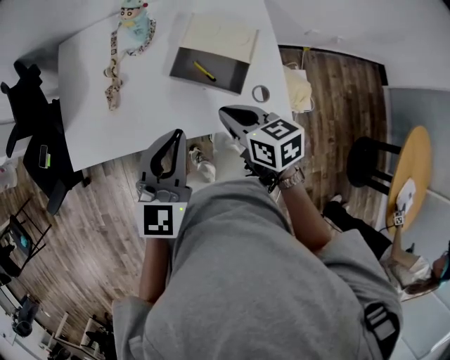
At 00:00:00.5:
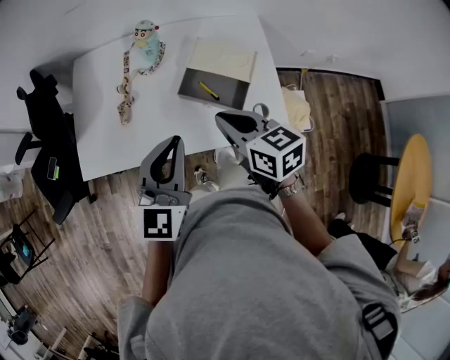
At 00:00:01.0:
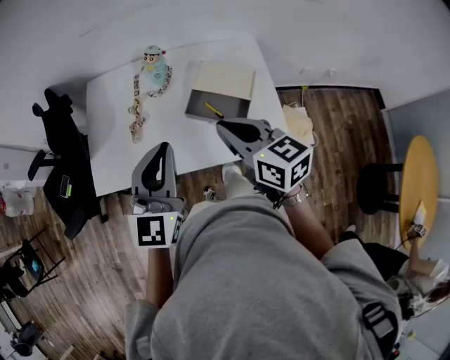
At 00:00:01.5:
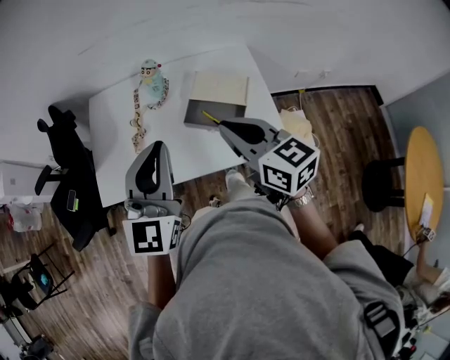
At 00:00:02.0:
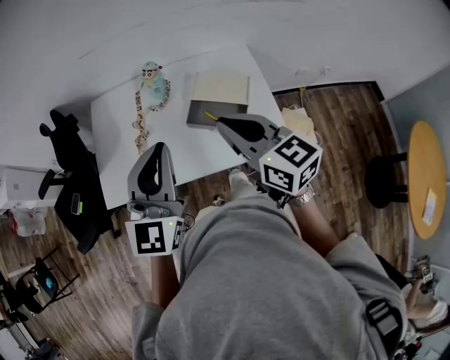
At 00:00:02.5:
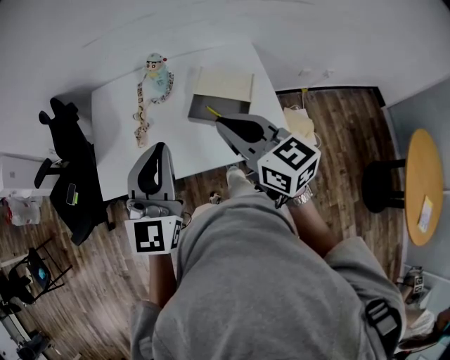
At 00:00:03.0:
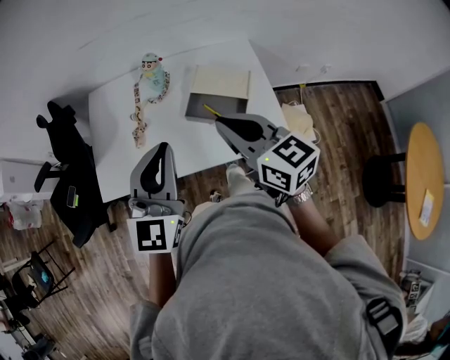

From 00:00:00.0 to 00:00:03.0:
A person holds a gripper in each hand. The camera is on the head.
From 00:00:00.0 to 00:00:01.5: The grippers both shift upward by roughly 15 cm. The right gripper turns by roughly 30 degrees.
From 00:00:01.5 to 00:00:03.0: There are only small adjustments of the grippers.

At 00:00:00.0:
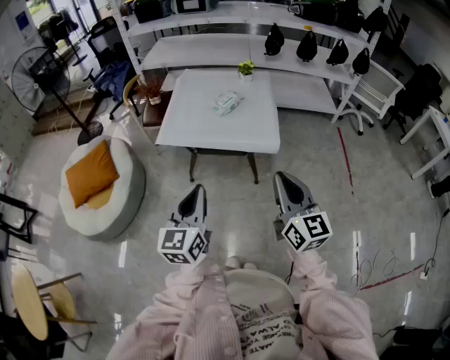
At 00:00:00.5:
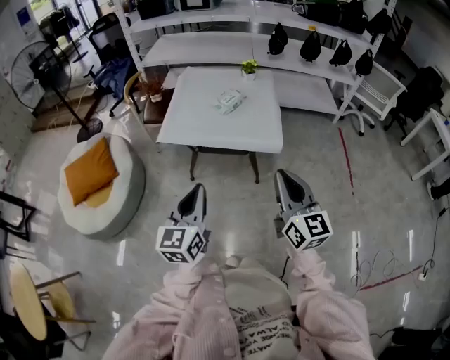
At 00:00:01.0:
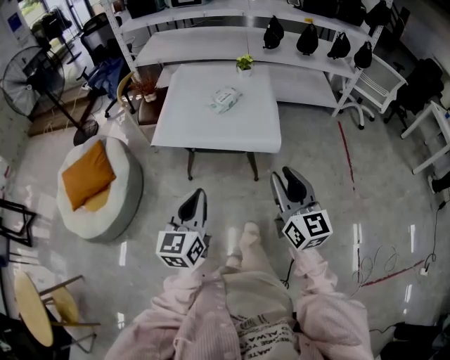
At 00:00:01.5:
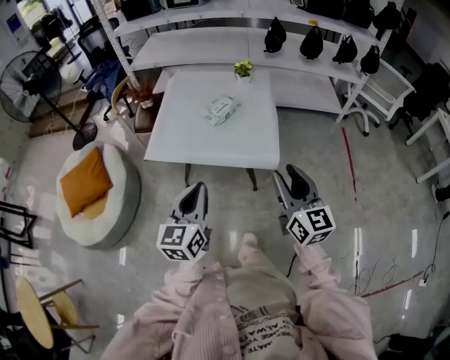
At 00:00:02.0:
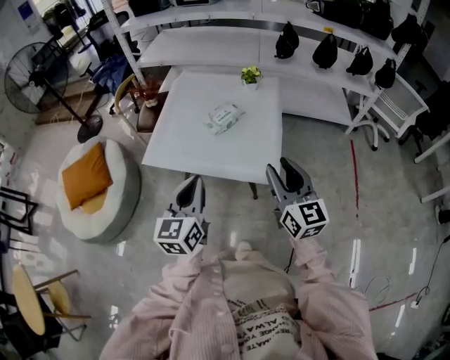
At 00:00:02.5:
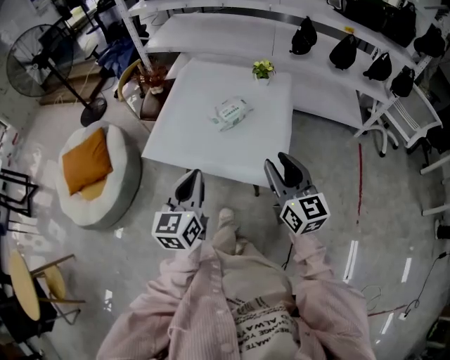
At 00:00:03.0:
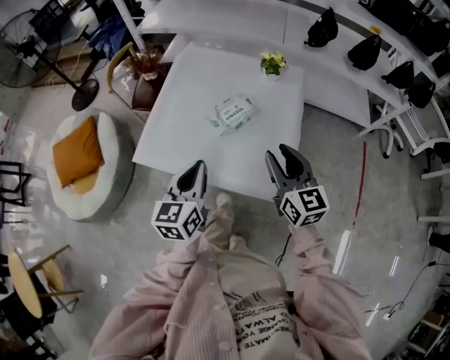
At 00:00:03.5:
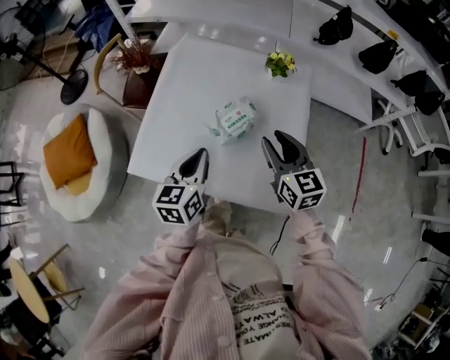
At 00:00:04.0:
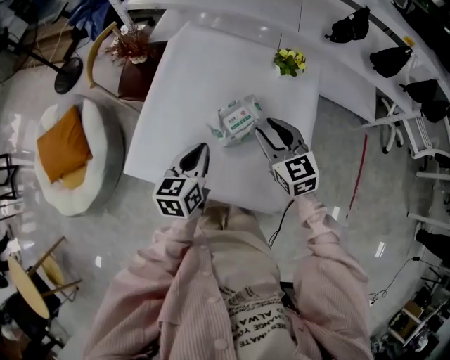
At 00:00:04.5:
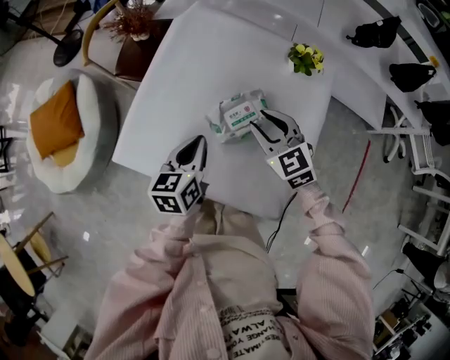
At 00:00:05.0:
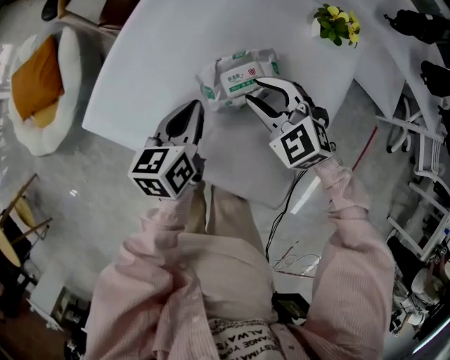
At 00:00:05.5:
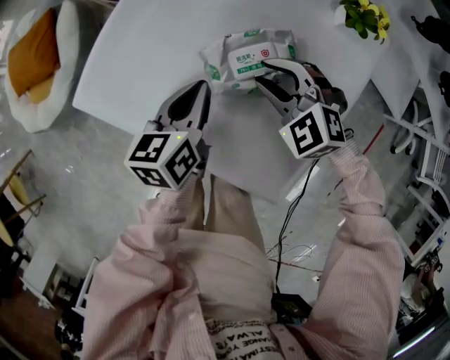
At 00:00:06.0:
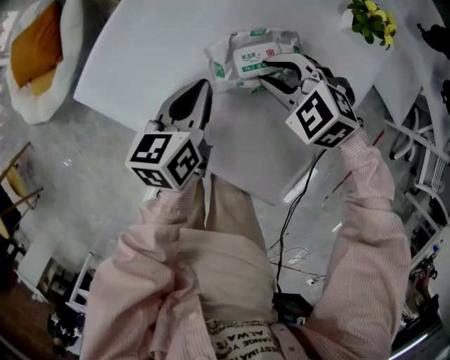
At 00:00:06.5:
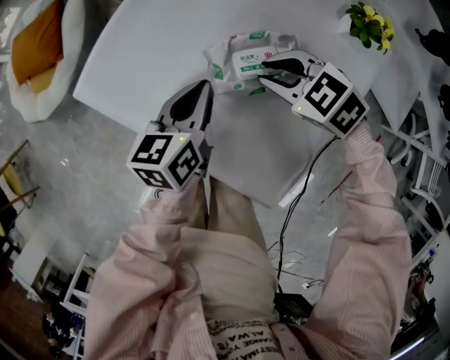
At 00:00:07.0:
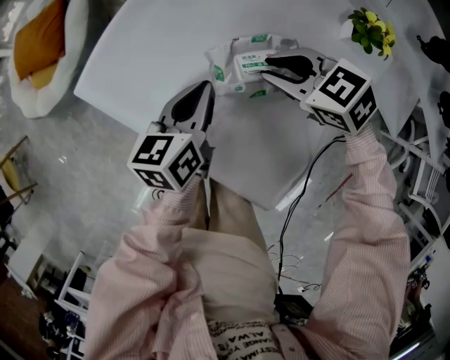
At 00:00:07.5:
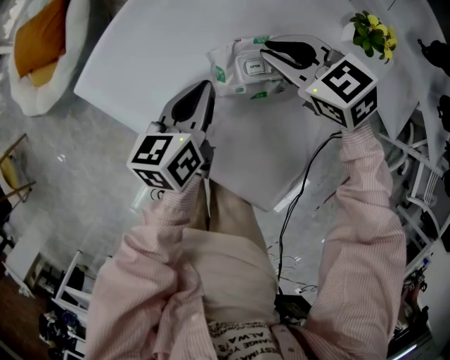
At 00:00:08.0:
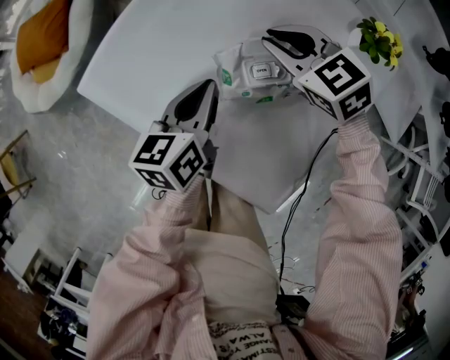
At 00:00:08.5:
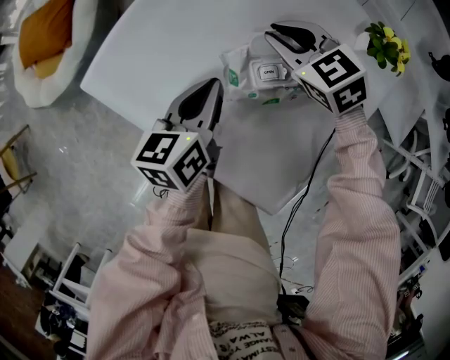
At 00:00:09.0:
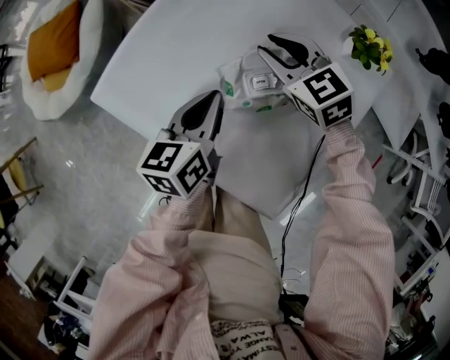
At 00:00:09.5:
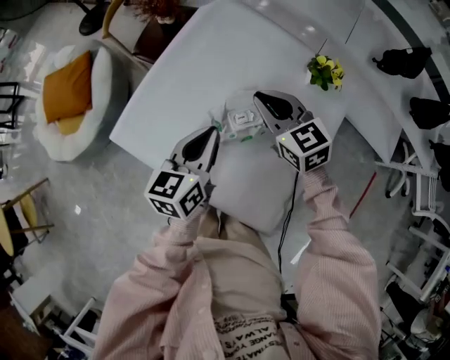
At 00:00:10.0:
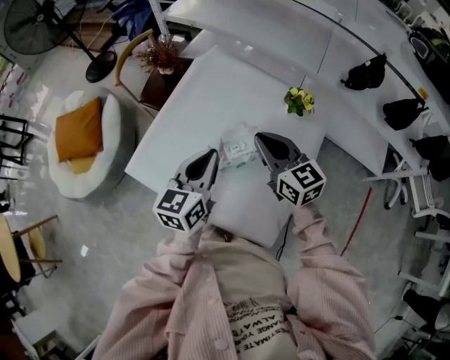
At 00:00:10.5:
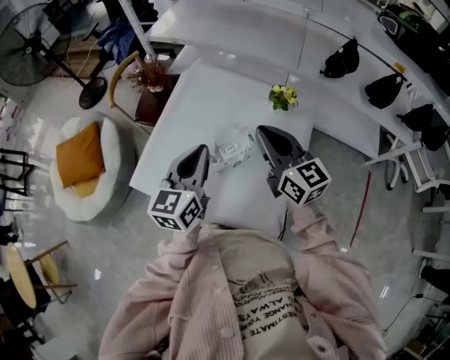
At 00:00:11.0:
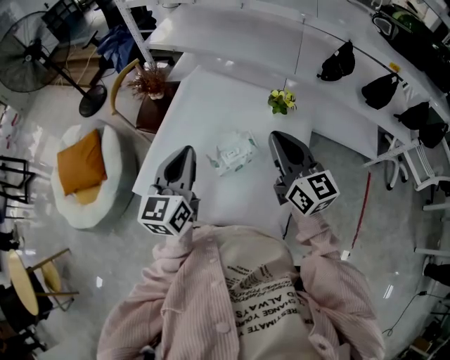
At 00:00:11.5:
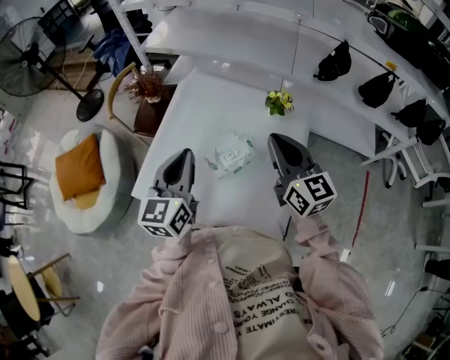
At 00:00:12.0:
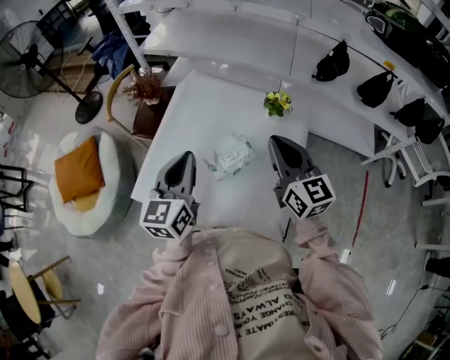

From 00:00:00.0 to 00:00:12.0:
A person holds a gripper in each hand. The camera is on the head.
From 00:00:00.0 to 00:00:02.0: The grippers both shift forward by approximately 25 cm. The right gripper opens up.
From 00:00:02.0 to 00:00:04.0: Both grippers travel together forward and downward, some 40 cm. The right gripper rotates some 30 degrees, while the left gripper turns by roughly 20 degrees.
From 00:00:04.0 to 00:00:06.0: Both grippers travel together downward, approximately 15 cm. The left gripper rotates some 20 degrees. Meanwhile the right gripper swivels roughly 60 degrees.
From 00:00:06.0 to 00:00:08.0: The right gripper goes roughly 10 cm forward, and changes its angle by about 20 degrees.
From 00:00:08.0 to 00:00:10.0: The left gripper travels upward by about 20 cm, and swivels roughly 30 degrees. Meanwhile the right gripper moves upward and backward, roughly 20 cm, and rotates about 40 degrees.
From 00:00:10.0 to 00:00:12.0: The right gripper moves upward and to the right, roughly 10 cm, and changes its angle by about 20 degrees, while the left gripper moves upward, approximately 5 cm.

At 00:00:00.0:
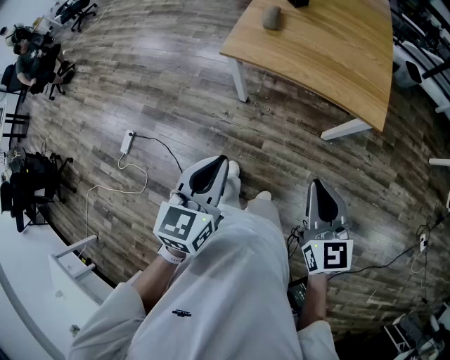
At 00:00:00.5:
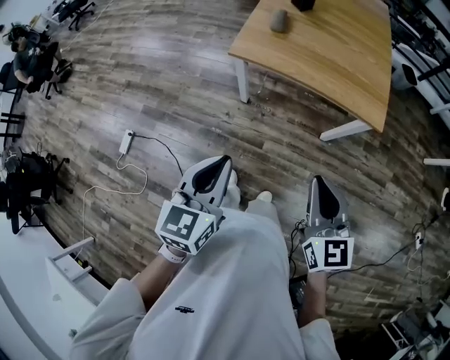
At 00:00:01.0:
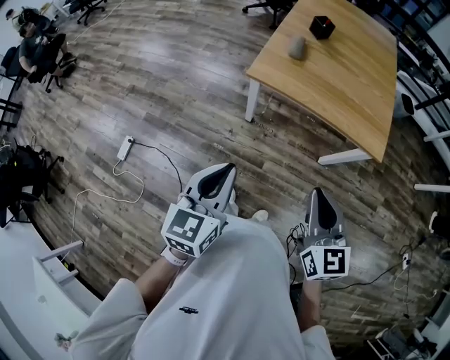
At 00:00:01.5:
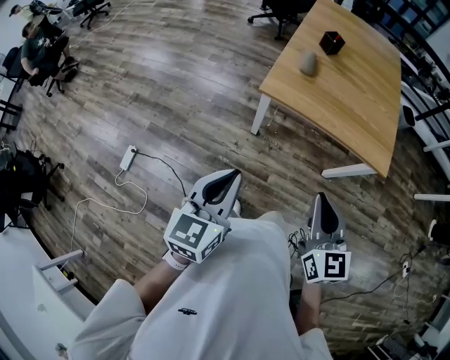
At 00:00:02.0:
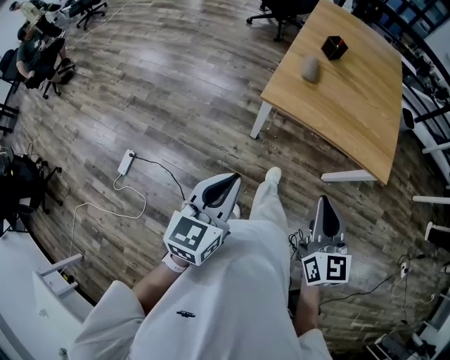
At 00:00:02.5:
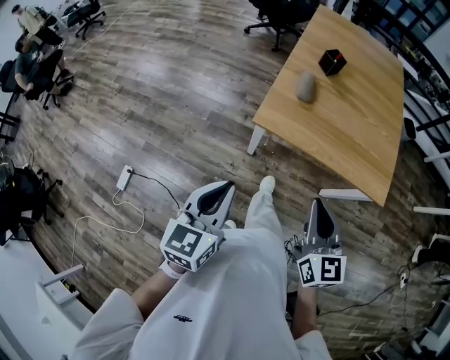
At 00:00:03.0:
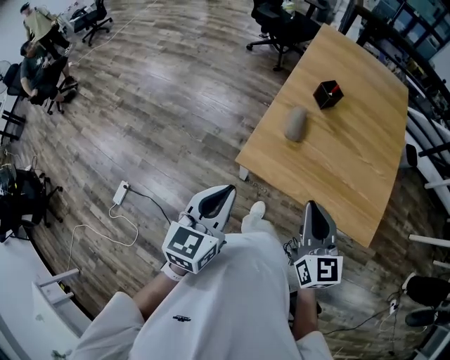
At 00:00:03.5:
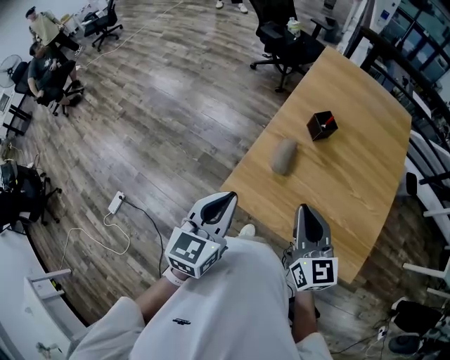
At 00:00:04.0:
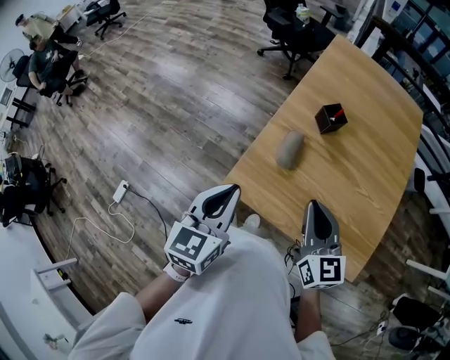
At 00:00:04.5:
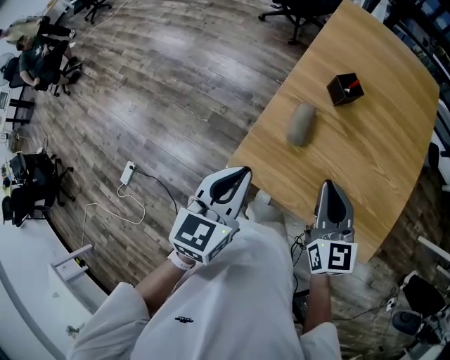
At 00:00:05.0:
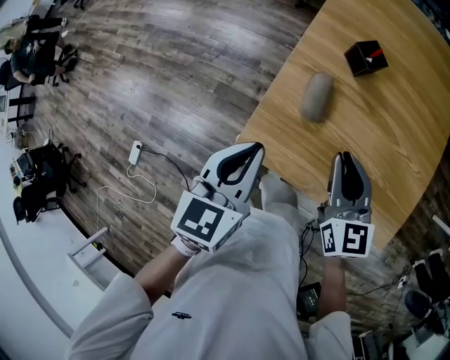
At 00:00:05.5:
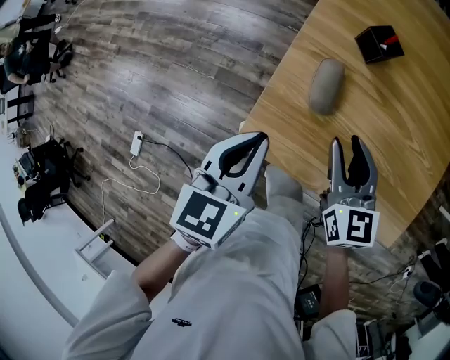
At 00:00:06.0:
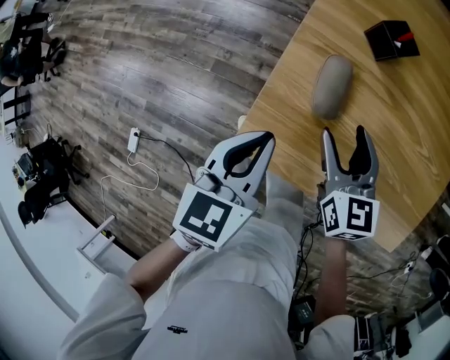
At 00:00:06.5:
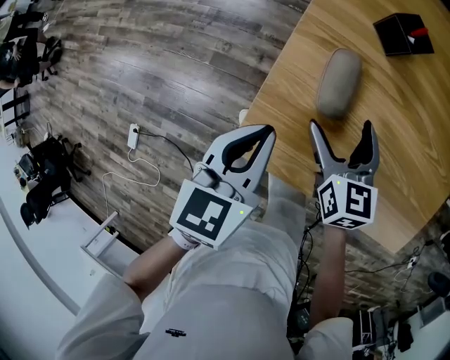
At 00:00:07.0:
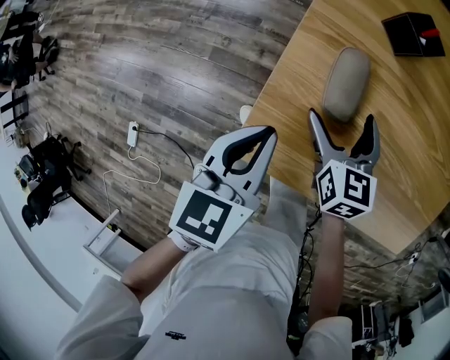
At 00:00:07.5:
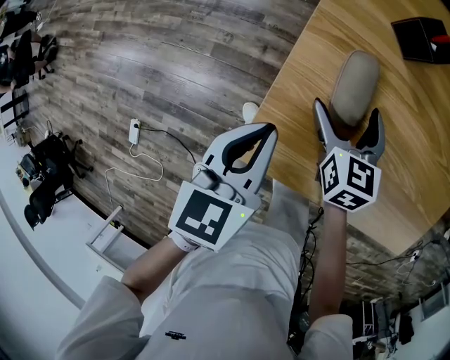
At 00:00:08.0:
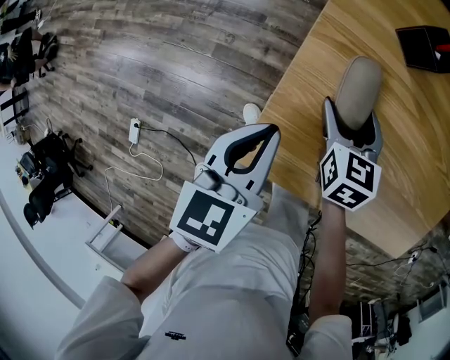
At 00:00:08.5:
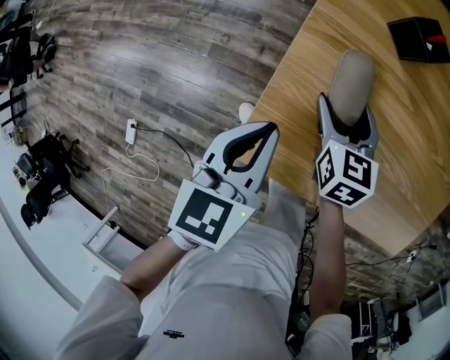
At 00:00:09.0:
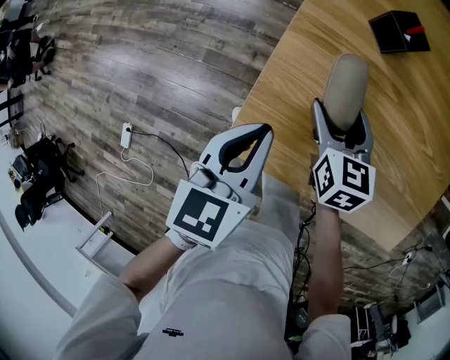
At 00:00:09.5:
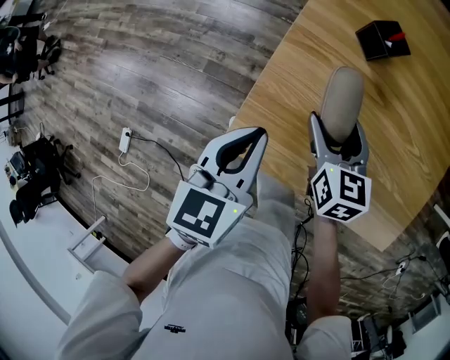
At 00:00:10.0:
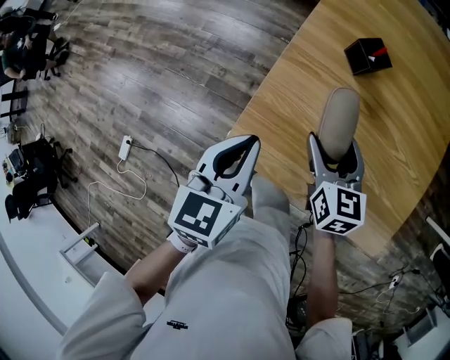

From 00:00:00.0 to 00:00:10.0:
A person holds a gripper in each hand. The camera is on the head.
From 00:00:00.0 to 00:00:02.0: Both grippers move to the left and forward, roughly 20 cm.
From 00:00:02.0 to 00:00:04.0: The pair of grippers is taken forward, approximately 40 cm.
From 00:00:04.0 to 00:00:06.0: The grippers both shift downward and forward by approximately 25 cm. The right gripper opens.
From 00:00:06.0 to 00:00:08.0: The right gripper is displaced downward and forward by approximately 15 cm. The left gripper is displaced downward by roughly 5 cm.
From 00:00:08.0 to 00:00:10.0: The grippers both shift upward and backward by roughly 15 cm.

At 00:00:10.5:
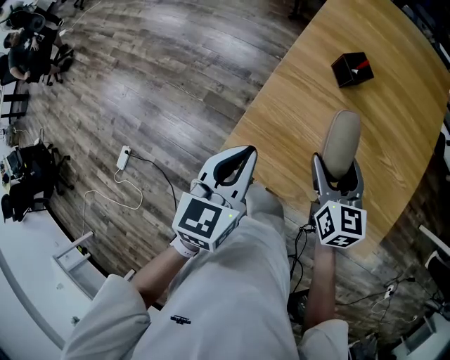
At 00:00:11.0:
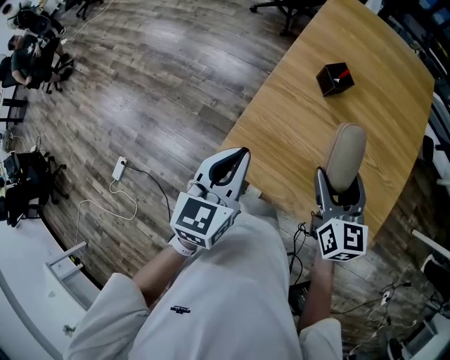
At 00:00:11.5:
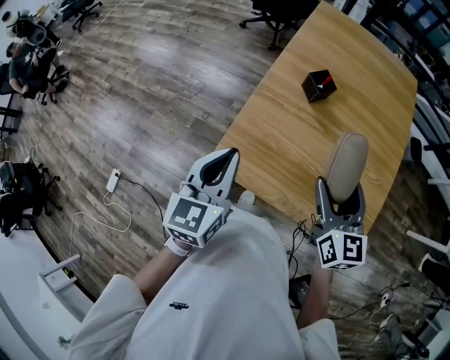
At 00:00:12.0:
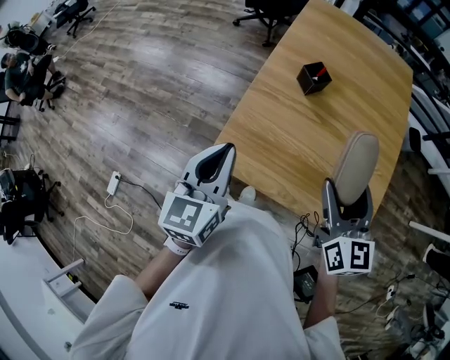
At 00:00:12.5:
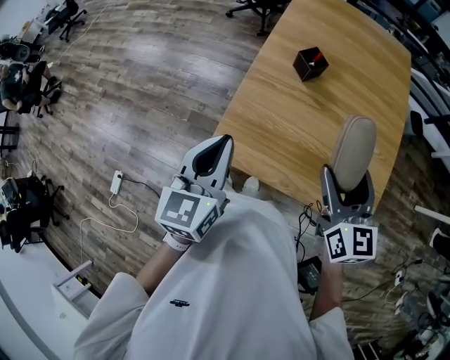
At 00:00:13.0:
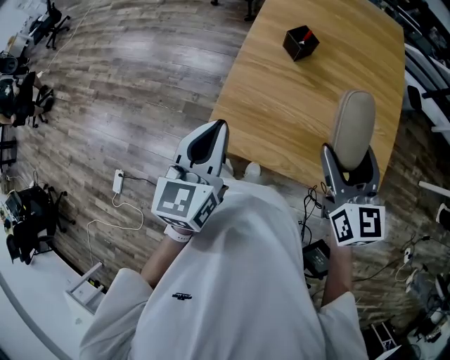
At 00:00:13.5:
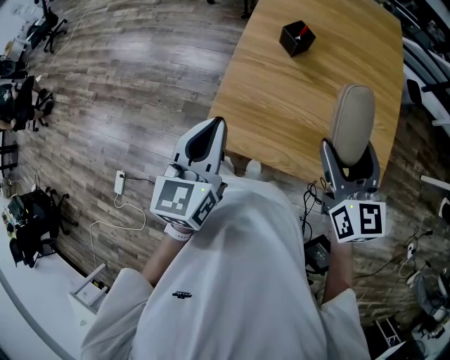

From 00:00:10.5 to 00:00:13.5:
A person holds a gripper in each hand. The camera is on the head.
From 00:00:10.5 to 00:00:12.0: The right gripper is displaced upward, backward and to the right by about 20 cm. Meanwhile the left gripper is displaced upward by some 10 cm.
From 00:00:12.0 to 00:00:13.5: There are only small adjustments of the grippers.
